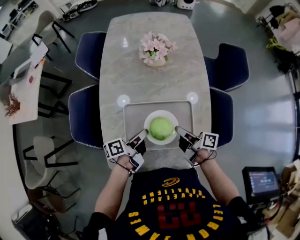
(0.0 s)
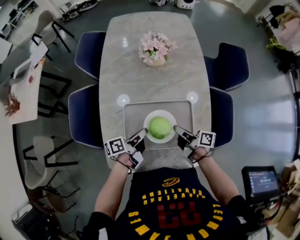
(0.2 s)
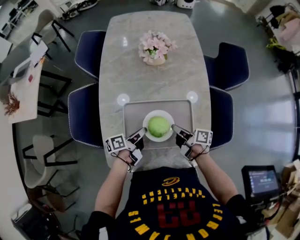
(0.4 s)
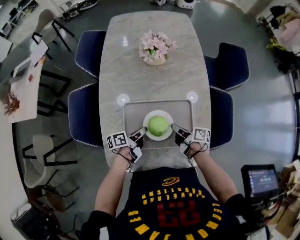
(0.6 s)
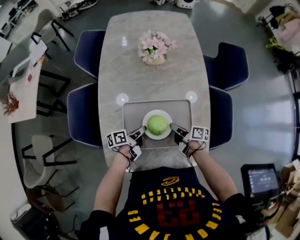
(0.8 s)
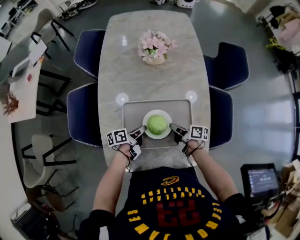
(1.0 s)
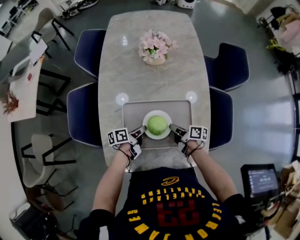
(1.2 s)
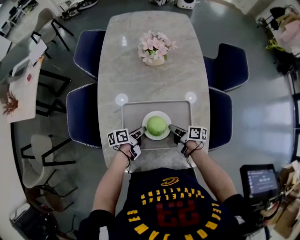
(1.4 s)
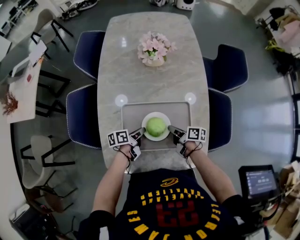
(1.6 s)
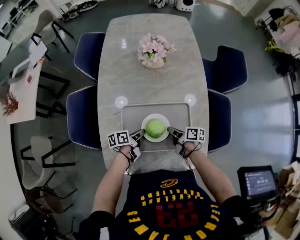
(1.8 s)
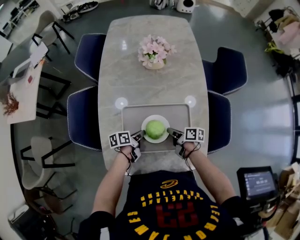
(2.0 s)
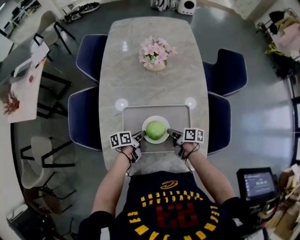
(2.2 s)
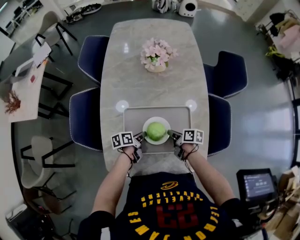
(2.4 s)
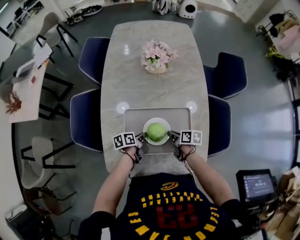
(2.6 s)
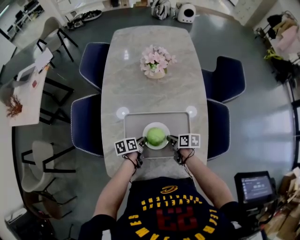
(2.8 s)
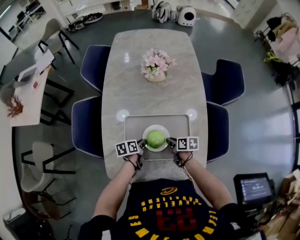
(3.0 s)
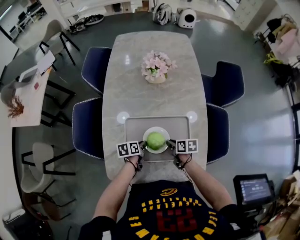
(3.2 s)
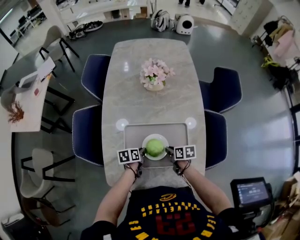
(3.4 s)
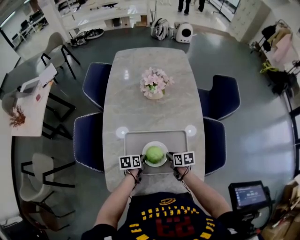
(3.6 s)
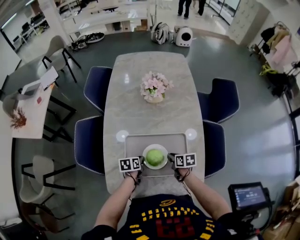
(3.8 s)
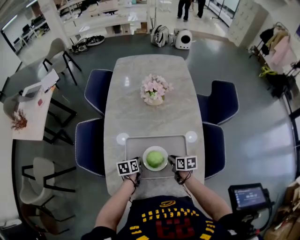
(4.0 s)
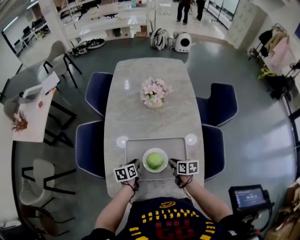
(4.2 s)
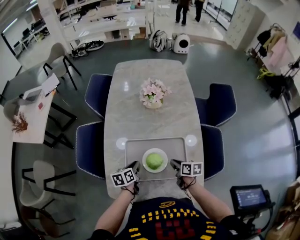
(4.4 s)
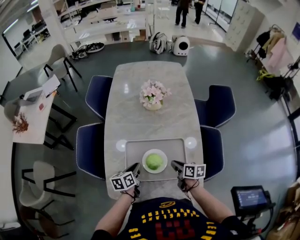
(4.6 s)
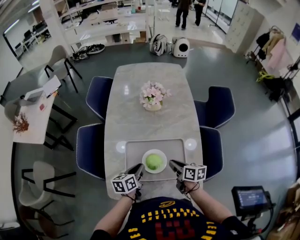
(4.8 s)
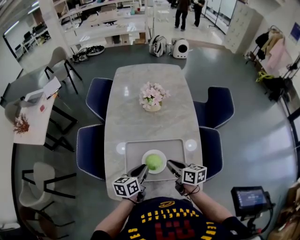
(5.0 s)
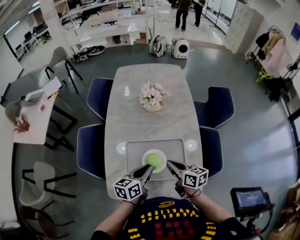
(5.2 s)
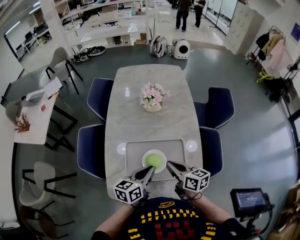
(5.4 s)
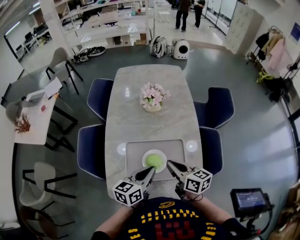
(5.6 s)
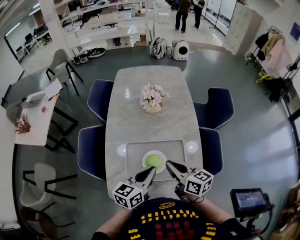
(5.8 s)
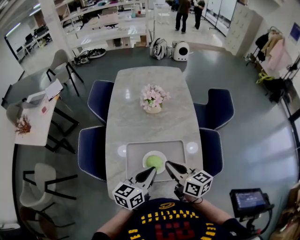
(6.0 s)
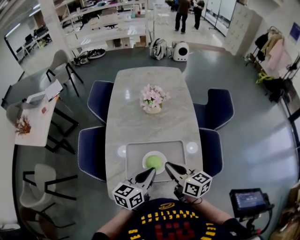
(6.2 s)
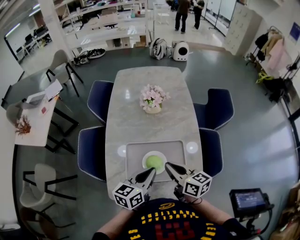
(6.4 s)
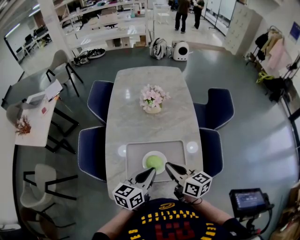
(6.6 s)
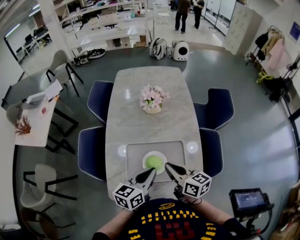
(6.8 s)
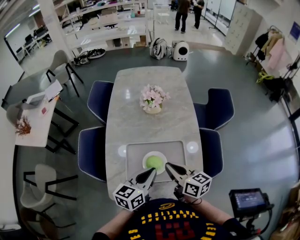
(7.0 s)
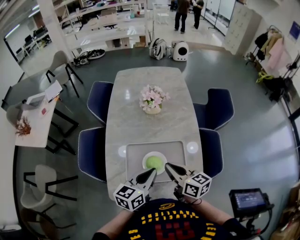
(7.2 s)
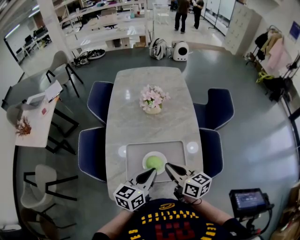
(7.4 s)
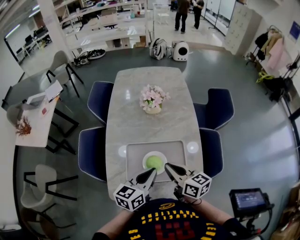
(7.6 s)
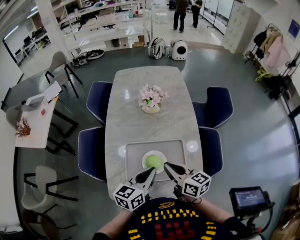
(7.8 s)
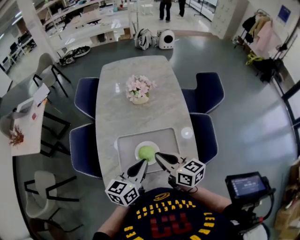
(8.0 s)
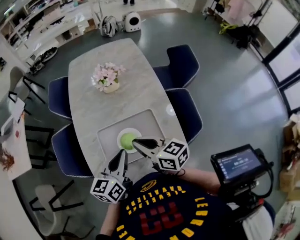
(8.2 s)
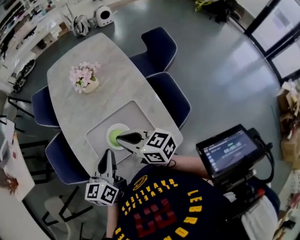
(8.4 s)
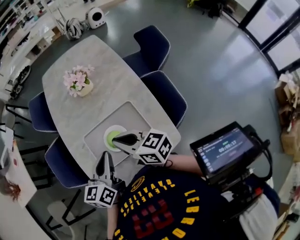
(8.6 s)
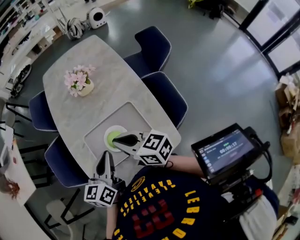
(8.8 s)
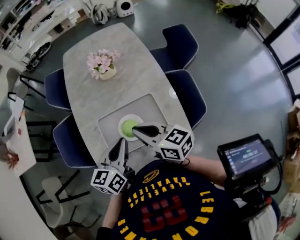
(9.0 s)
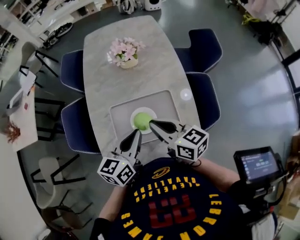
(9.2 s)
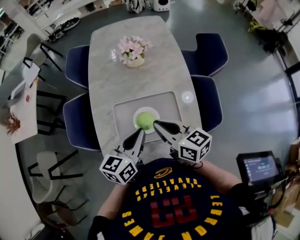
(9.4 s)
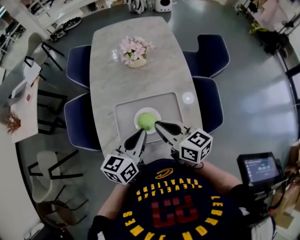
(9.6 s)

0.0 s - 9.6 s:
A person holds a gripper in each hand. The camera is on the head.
0.0 s - 1.6 s: Both grippers travel together downward, about 10 cm.
1.6 s - 3.2 s: The right gripper swivels approximately 30 degrees. The left gripper swivels some 20 degrees.
3.2 s - 4.8 s: The two grippers go approximately 15 cm upward. The left gripper rotates some 20 degrees.
4.8 s - 6.4 s: The left gripper moves upward and to the right, about 15 cm, and changes its angle by approximately 20 degrees, while the right gripper goes some 15 cm upward, and turns by about 20 degrees.
6.4 s - 8.0 s: Both grippers stay put.
8.0 s - 9.6 s: There are only small adjustments of the grippers.

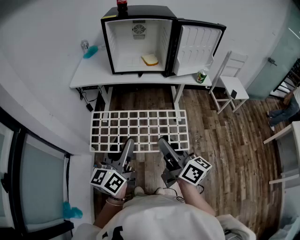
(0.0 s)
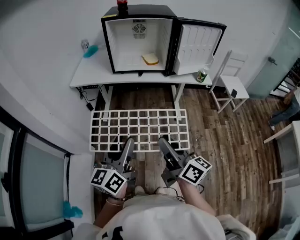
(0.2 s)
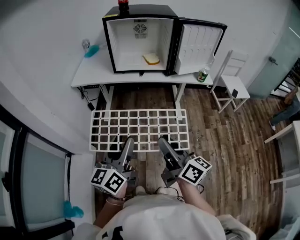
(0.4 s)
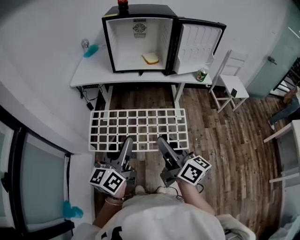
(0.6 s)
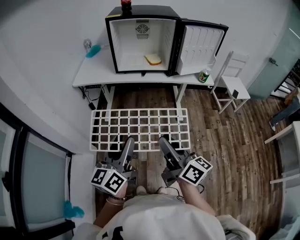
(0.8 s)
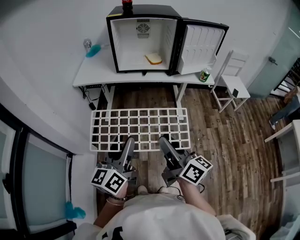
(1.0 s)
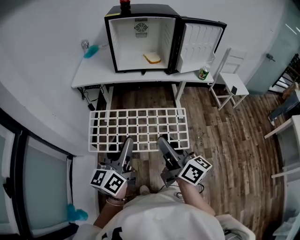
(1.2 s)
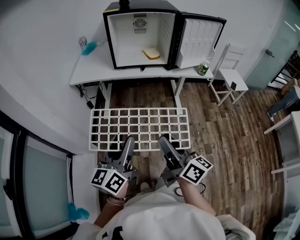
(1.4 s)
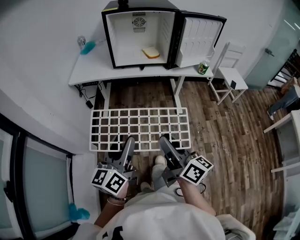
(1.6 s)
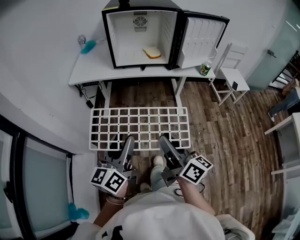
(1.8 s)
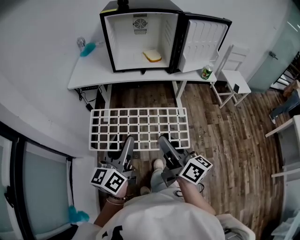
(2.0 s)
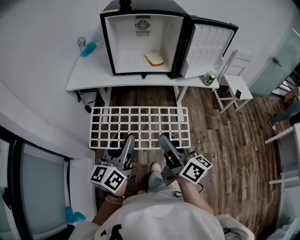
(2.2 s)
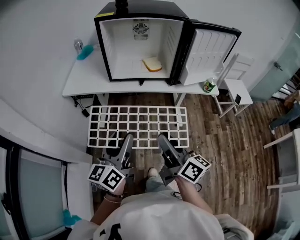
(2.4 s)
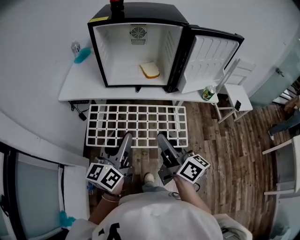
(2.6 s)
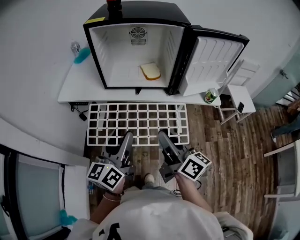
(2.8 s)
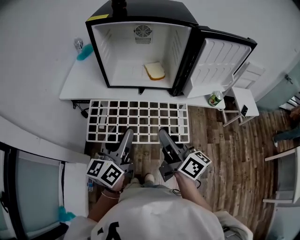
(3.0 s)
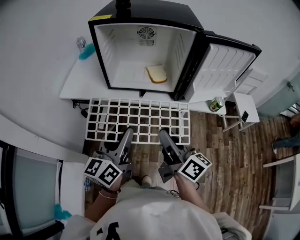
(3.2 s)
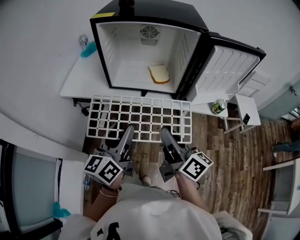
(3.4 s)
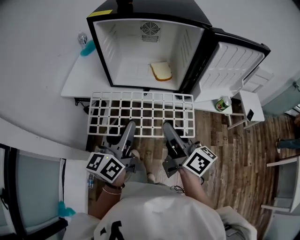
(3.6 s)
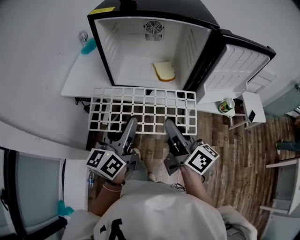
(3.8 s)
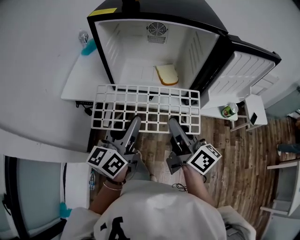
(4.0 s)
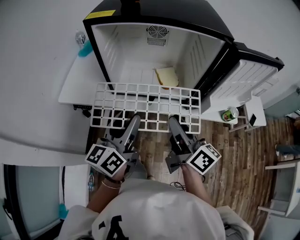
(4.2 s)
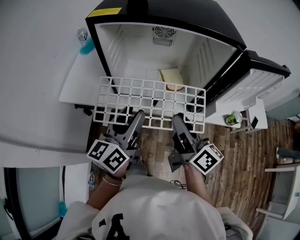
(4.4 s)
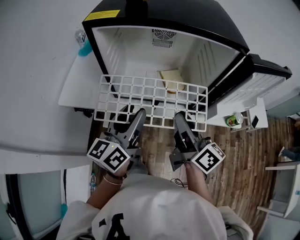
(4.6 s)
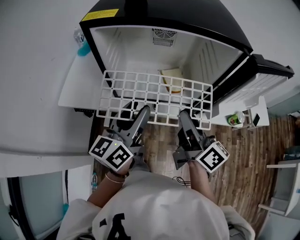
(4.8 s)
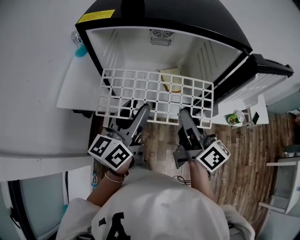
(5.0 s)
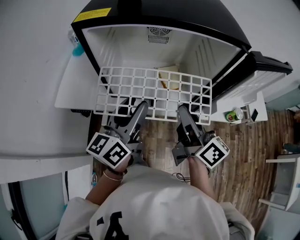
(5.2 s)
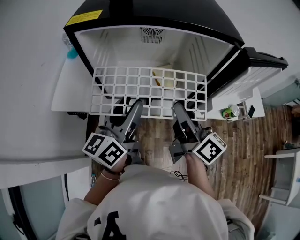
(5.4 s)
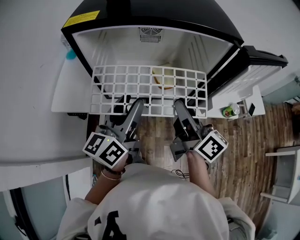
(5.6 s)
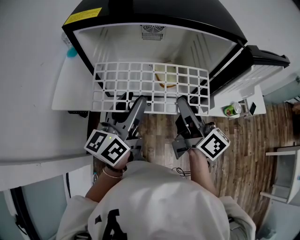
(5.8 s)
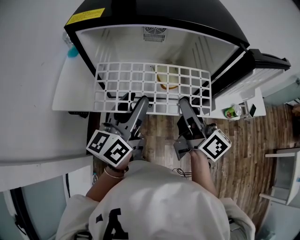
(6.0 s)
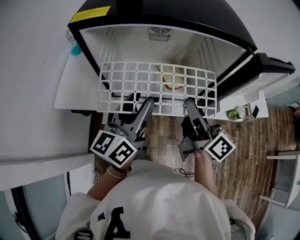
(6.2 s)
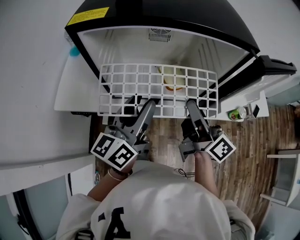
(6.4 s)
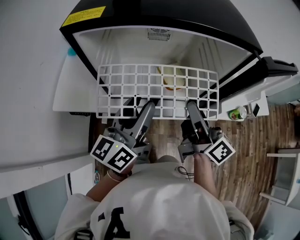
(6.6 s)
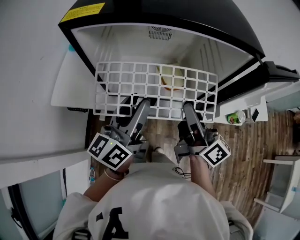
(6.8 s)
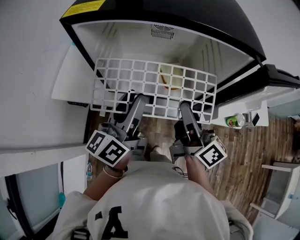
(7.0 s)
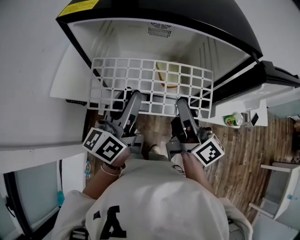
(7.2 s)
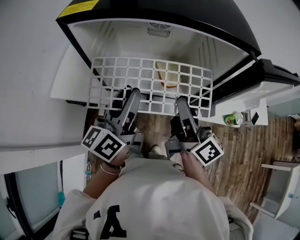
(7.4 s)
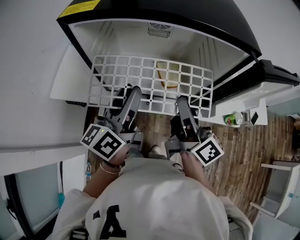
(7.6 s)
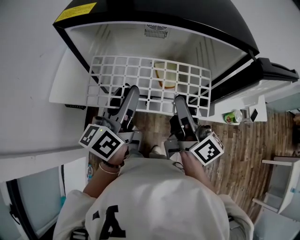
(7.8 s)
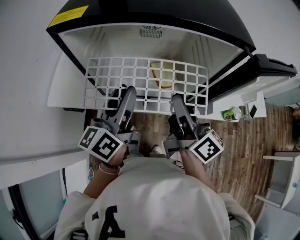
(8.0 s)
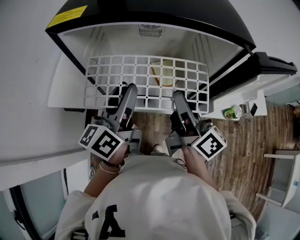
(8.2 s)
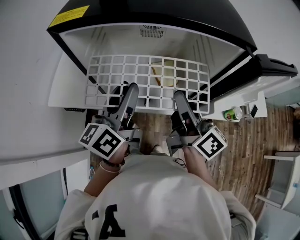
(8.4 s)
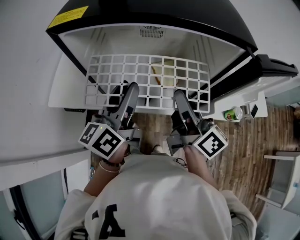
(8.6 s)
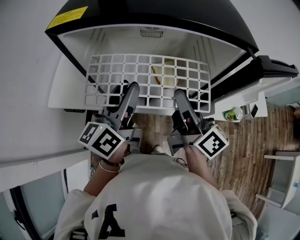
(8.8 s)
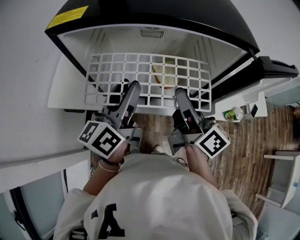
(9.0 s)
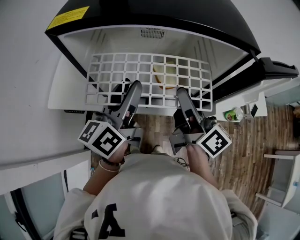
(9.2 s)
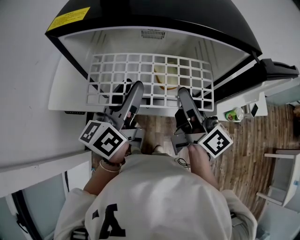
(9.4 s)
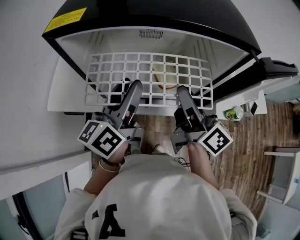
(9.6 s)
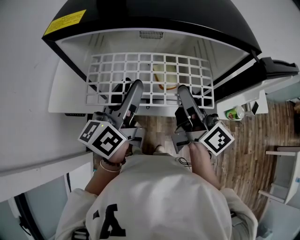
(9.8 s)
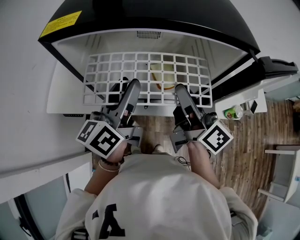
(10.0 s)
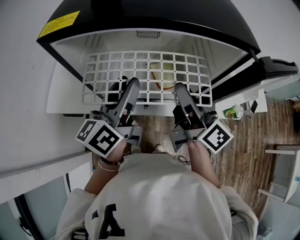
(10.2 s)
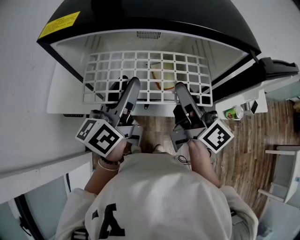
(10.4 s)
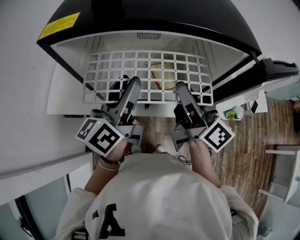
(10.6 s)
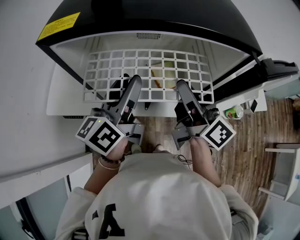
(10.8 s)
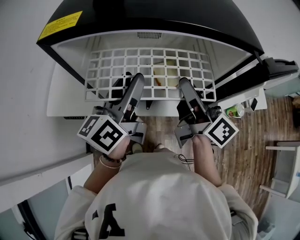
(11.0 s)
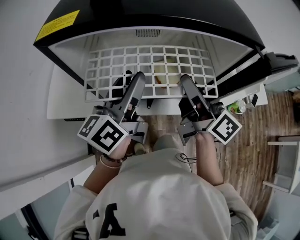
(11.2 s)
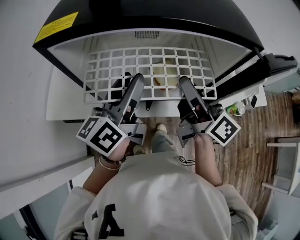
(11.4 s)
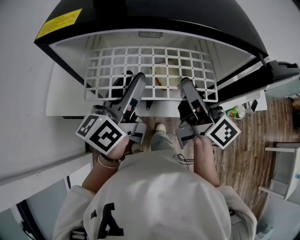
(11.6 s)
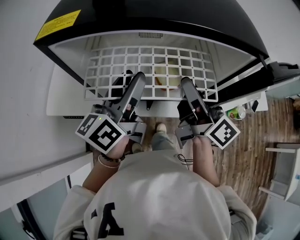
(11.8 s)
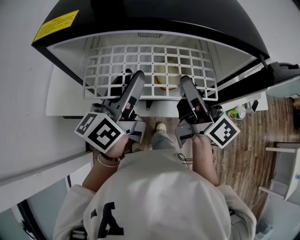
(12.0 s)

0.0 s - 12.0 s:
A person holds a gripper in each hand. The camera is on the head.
0.0 s - 1.6 s: The grippers move only a little.
1.6 s - 3.0 s: Both grippers move forward, some 25 cm.
3.0 s - 4.4 s: Both grippers move forward, approximately 20 cm.
4.4 s - 6.0 s: Both grippers travel together forward, roughly 5 cm.
6.0 s - 9.0 s: The grippers stay close to where they were, moving slightly.
9.0 s - 12.0 s: The grippers move only a little.

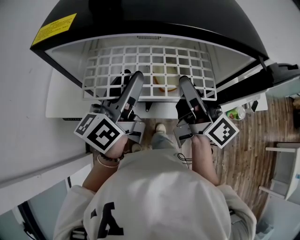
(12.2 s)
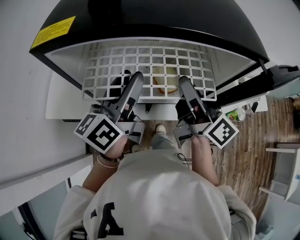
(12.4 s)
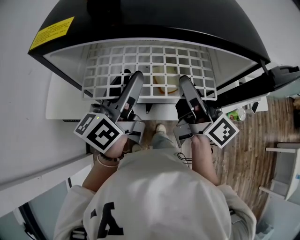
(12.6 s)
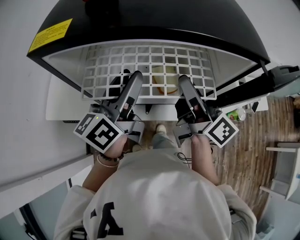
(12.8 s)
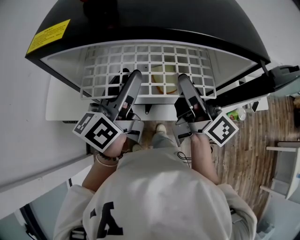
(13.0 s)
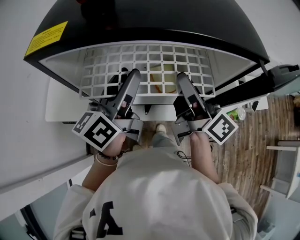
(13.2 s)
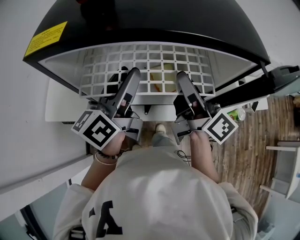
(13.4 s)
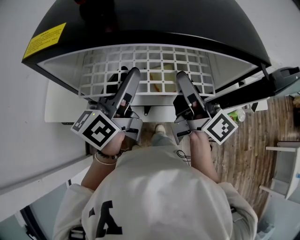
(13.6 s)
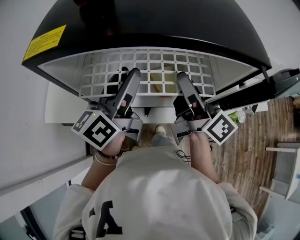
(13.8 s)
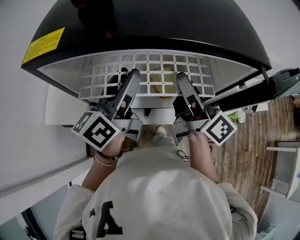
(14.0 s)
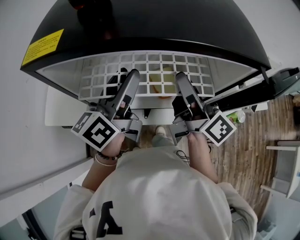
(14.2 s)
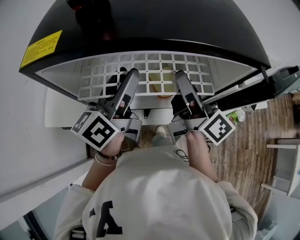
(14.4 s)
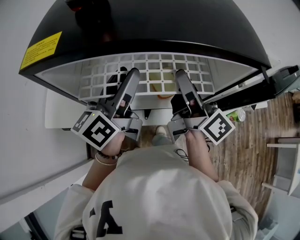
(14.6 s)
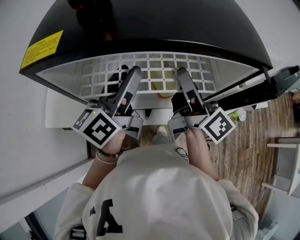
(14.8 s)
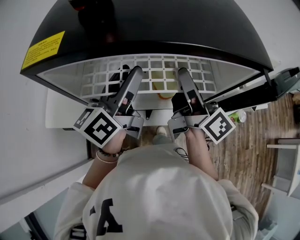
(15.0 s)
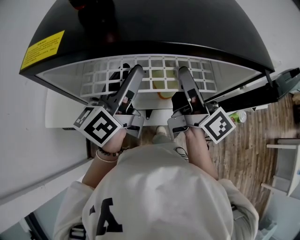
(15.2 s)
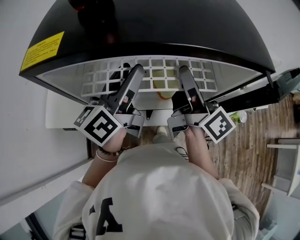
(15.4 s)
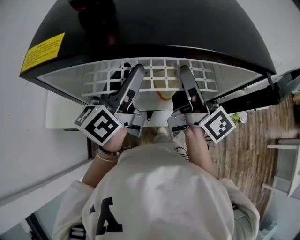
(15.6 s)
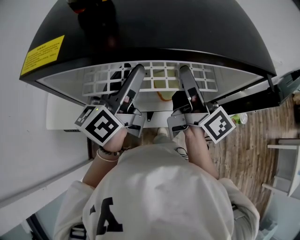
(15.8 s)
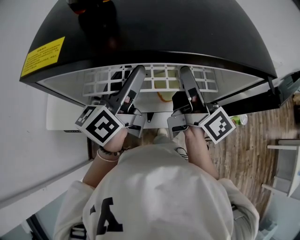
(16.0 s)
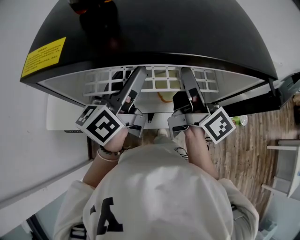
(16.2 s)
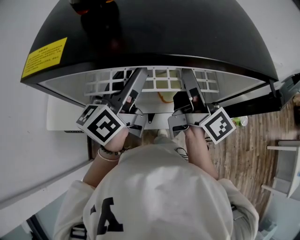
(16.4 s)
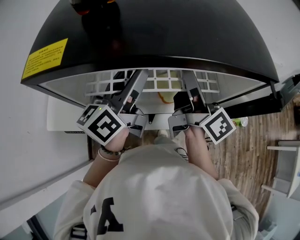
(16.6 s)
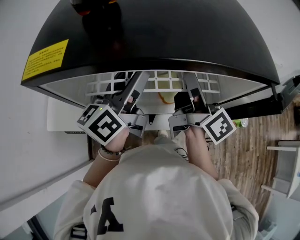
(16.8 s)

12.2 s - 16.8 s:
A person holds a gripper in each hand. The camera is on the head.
12.2 s - 15.2 s: The grippers make only small movements.
15.2 s - 16.8 s: There are only small adjustments of the grippers.
